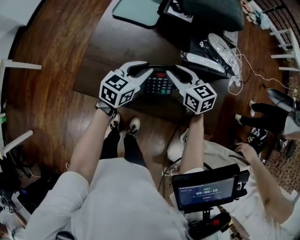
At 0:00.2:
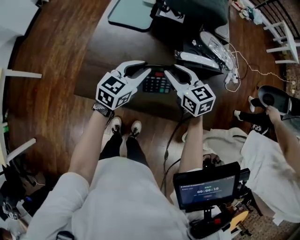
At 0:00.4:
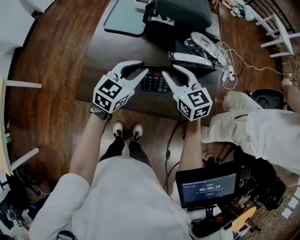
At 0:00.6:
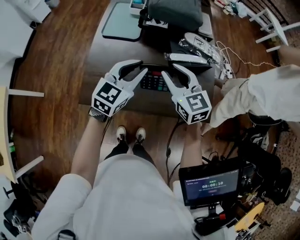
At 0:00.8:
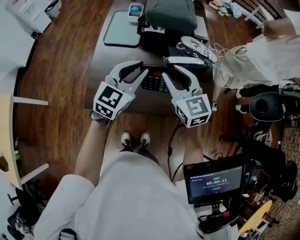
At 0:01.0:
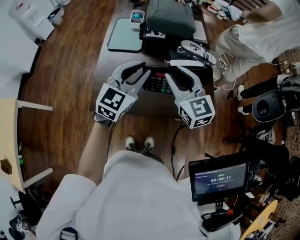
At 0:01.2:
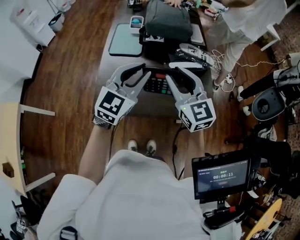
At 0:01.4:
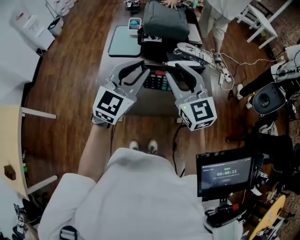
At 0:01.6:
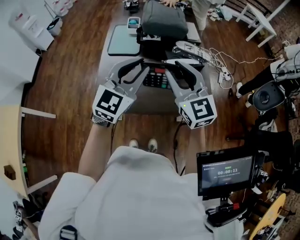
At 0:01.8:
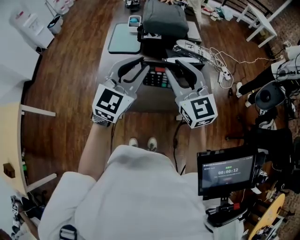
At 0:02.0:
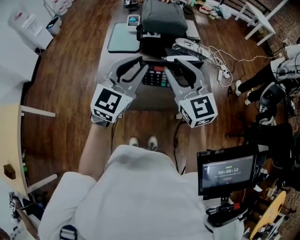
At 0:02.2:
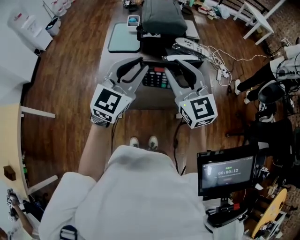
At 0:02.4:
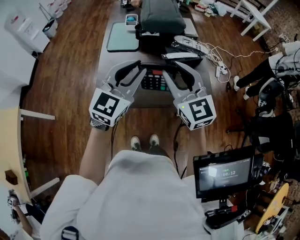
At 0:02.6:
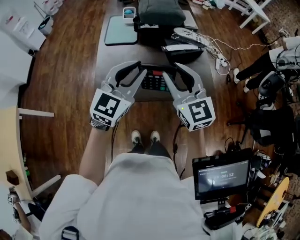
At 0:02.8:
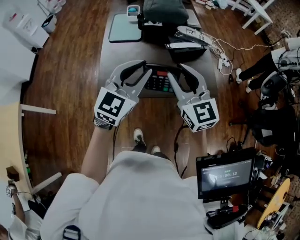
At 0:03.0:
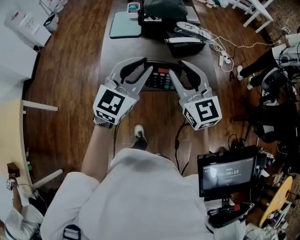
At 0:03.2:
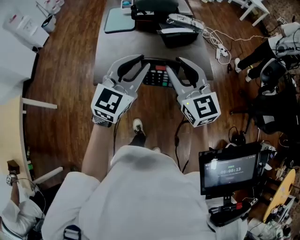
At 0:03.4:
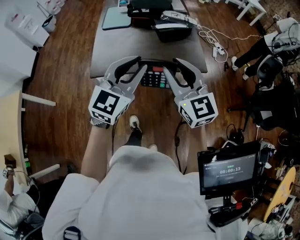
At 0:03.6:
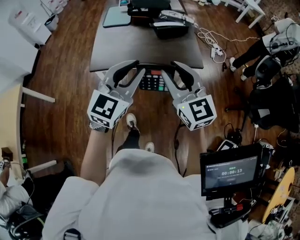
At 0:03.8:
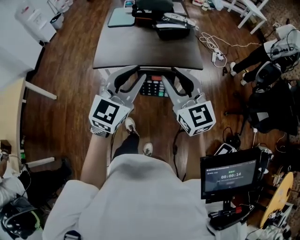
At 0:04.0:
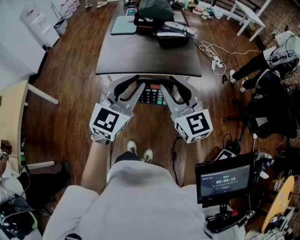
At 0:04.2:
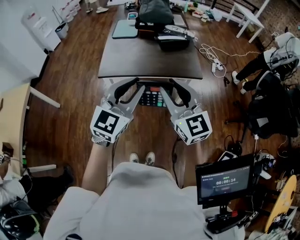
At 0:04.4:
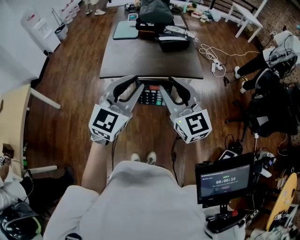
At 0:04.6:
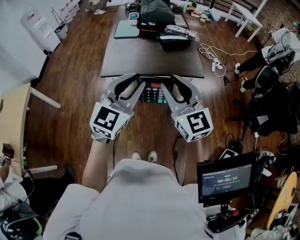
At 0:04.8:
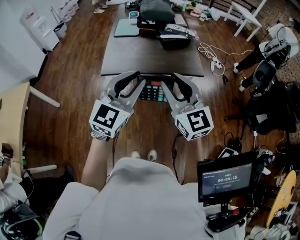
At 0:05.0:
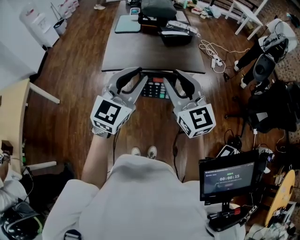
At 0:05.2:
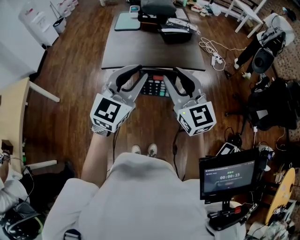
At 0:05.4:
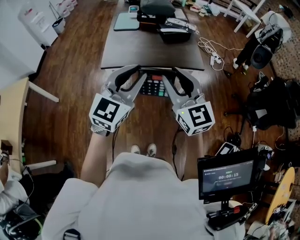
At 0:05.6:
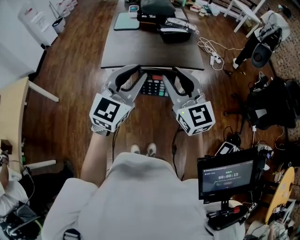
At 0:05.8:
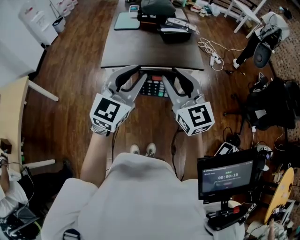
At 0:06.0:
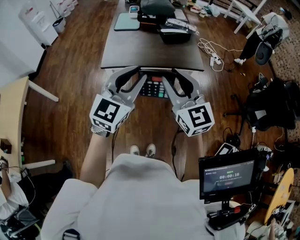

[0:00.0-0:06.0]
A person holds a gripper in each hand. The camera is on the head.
0:00.0 to 0:01.6: The left gripper is displaced upward by roughly 30 cm, and rotates around the line of its fingers by roughly 40 degrees, clockwise from behind. The right gripper shifts roughly 30 cm upward and backward, and rotates about 40 degrees.
0:01.6 to 0:03.0: Both grippers move backward, approximately 10 cm.
0:03.0 to 0:04.4: The grippers both shift backward by about 25 cm.
0:04.4 to 0:06.0: The grippers make only small movements.

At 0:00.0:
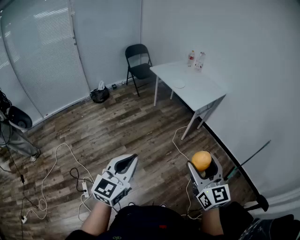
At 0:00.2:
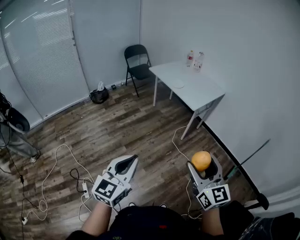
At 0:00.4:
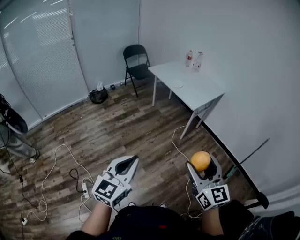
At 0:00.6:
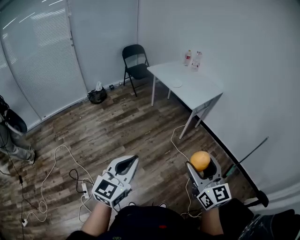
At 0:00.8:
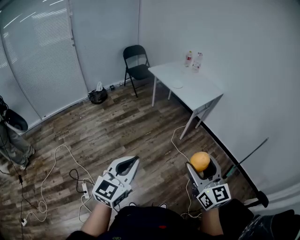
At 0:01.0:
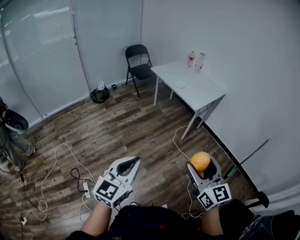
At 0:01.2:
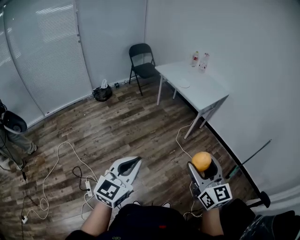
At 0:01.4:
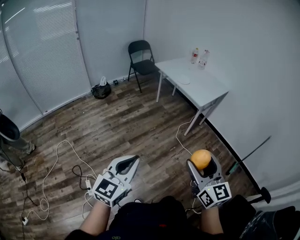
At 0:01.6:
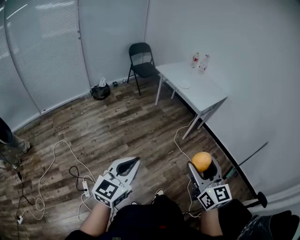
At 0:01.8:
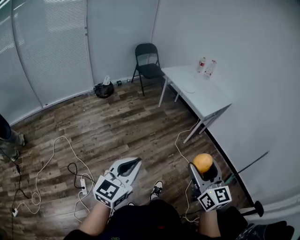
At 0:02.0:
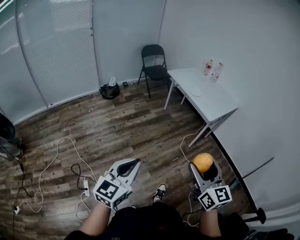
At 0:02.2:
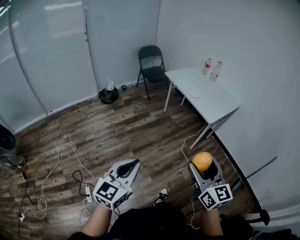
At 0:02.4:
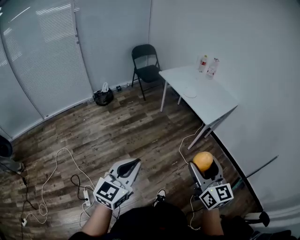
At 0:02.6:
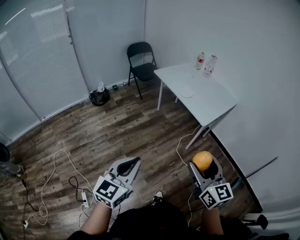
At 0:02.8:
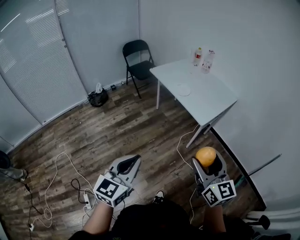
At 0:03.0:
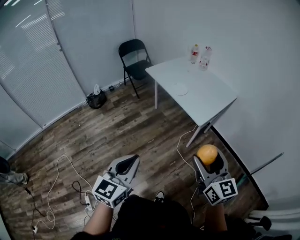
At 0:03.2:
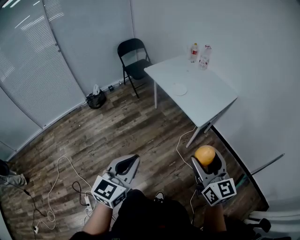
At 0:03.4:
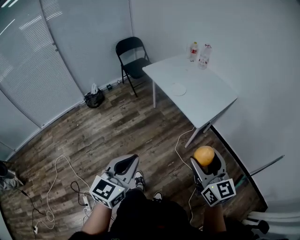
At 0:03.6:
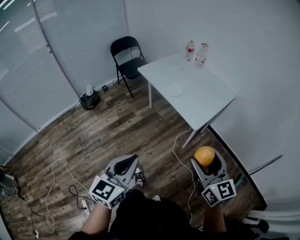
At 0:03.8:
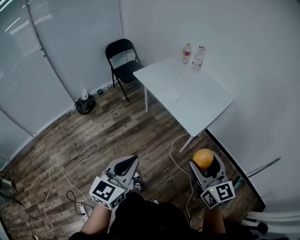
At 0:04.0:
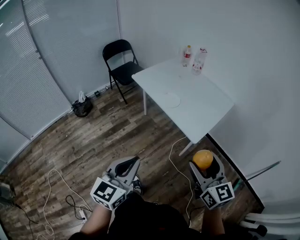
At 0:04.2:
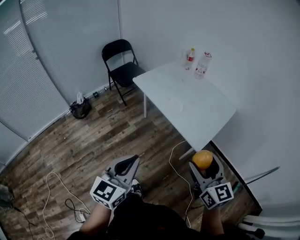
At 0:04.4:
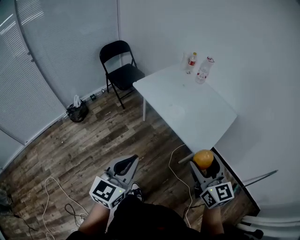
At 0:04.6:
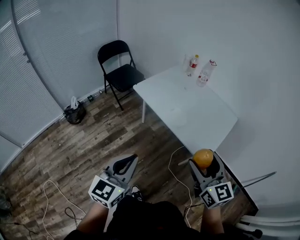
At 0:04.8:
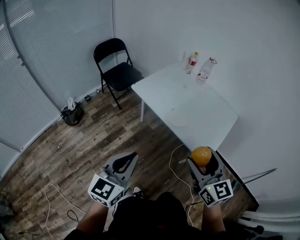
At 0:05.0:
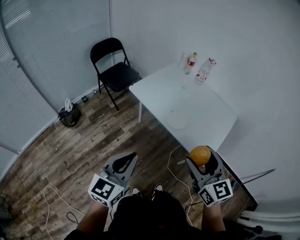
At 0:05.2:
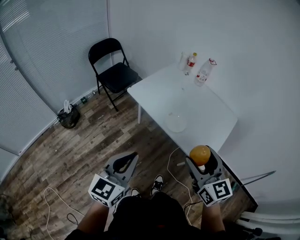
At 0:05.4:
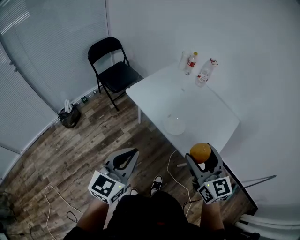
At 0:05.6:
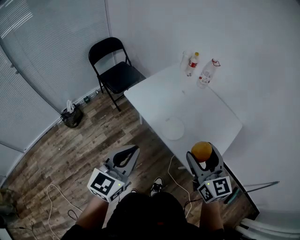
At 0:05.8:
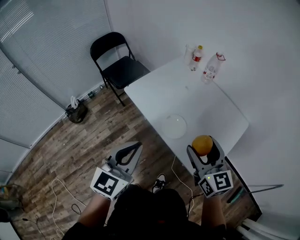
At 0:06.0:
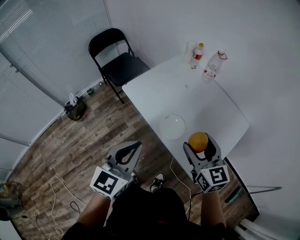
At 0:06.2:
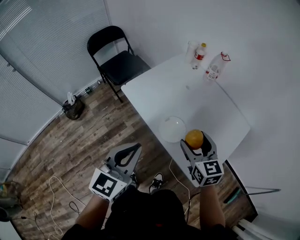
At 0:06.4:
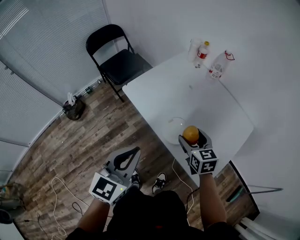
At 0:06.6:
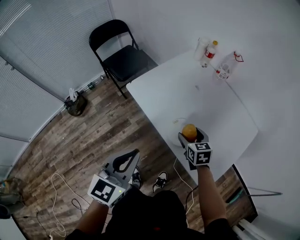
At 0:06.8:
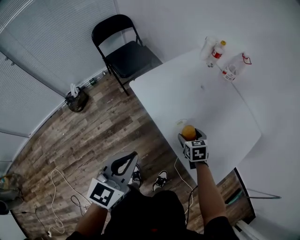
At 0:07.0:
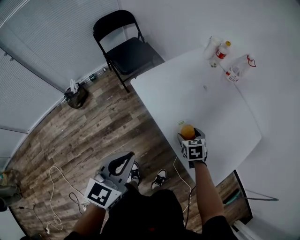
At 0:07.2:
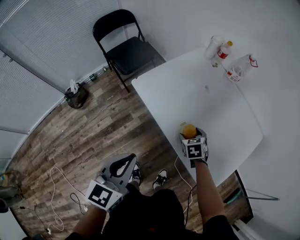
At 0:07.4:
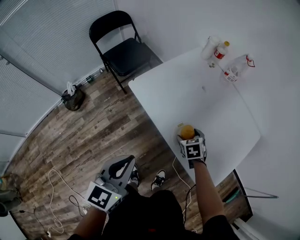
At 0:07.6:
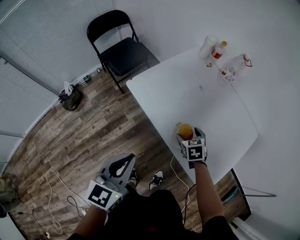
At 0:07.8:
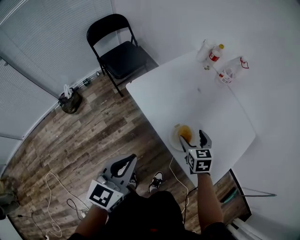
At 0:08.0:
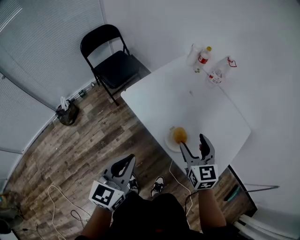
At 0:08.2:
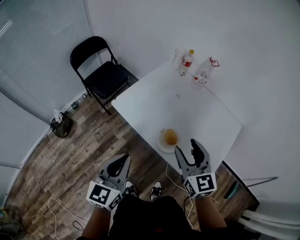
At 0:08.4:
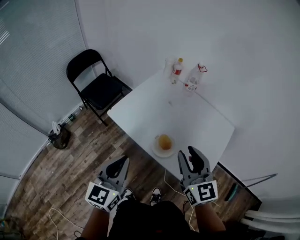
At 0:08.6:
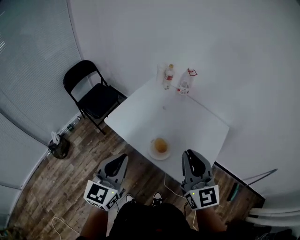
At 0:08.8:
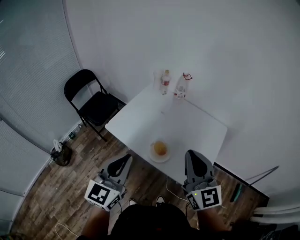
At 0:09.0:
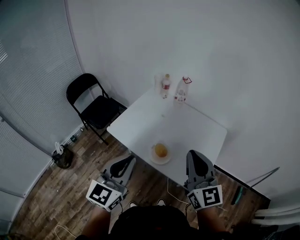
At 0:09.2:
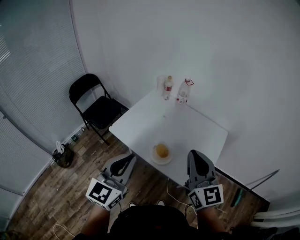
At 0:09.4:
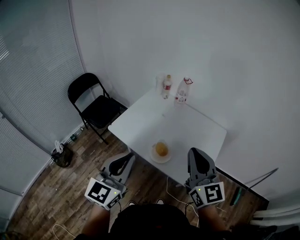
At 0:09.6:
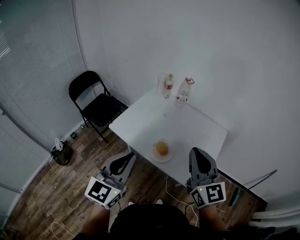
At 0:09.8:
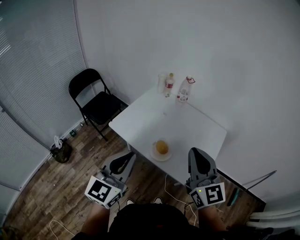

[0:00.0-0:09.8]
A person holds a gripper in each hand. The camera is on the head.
0:00.0 to 0:01.4: Both grippers move to the left, some 10 cm.
0:01.4 to 0:02.8: Both grippers travel together forward, some 30 cm.
0:02.8 to 0:04.2: Both grippers travel together forward, approximately 25 cm.
0:04.2 to 0:05.6: The two grippers go some 30 cm forward.
0:05.6 to 0:07.0: The right gripper travels downward and forward by some 40 cm, and tilts its fingers about 50 degrees downward, while the left gripper is displaced forward and downward by about 15 cm.
0:07.0 to 0:08.4: The right gripper goes some 35 cm upward, tilts its fingers about 50 degrees upward, and closes its fingers; the left gripper goes roughly 5 cm upward.
0:08.4 to 0:09.8: The right gripper is displaced upward and backward by roughly 15 cm, and closes up. Meanwhile the left gripper goes some 10 cm upward.

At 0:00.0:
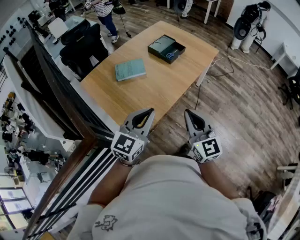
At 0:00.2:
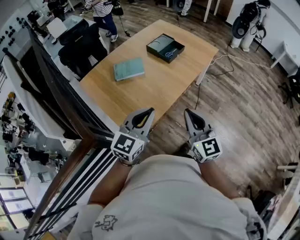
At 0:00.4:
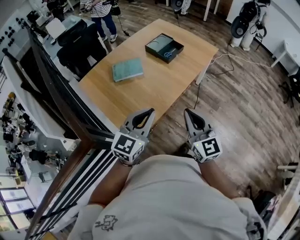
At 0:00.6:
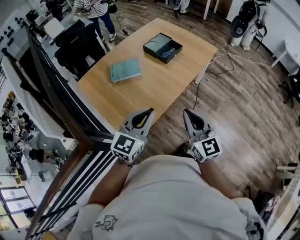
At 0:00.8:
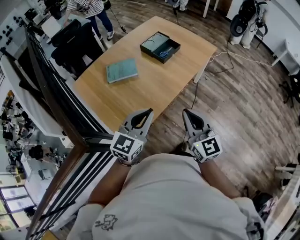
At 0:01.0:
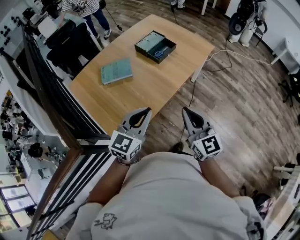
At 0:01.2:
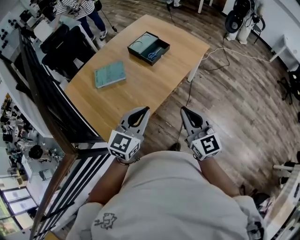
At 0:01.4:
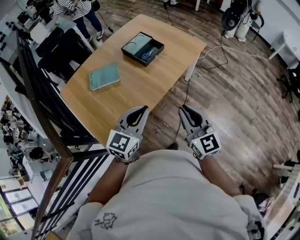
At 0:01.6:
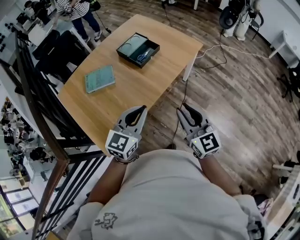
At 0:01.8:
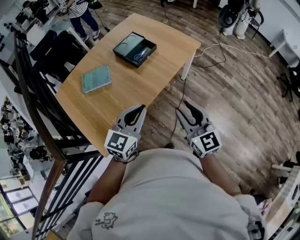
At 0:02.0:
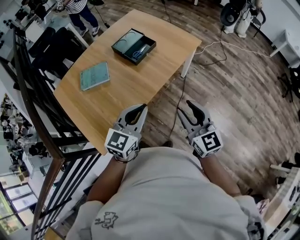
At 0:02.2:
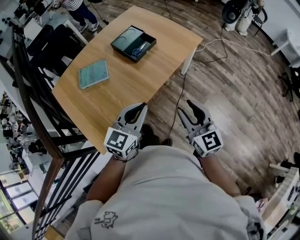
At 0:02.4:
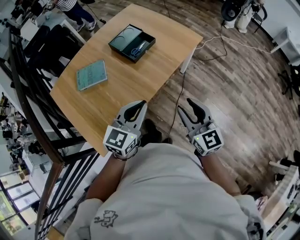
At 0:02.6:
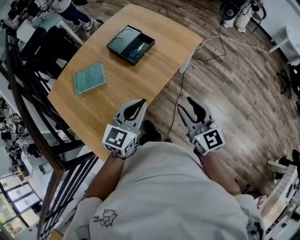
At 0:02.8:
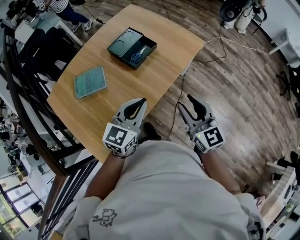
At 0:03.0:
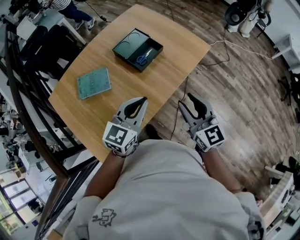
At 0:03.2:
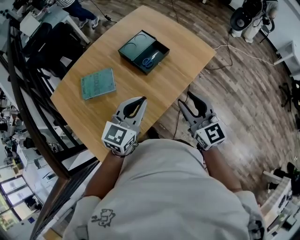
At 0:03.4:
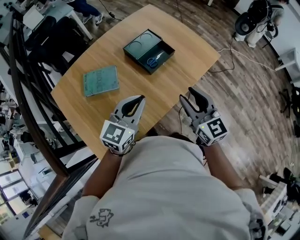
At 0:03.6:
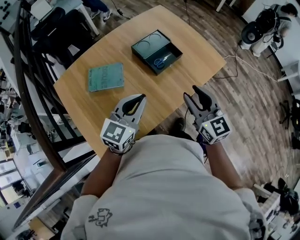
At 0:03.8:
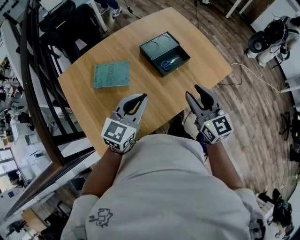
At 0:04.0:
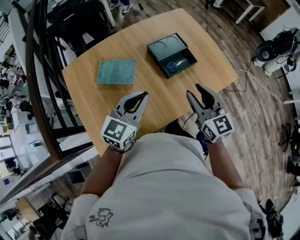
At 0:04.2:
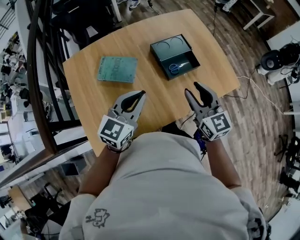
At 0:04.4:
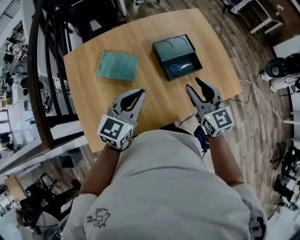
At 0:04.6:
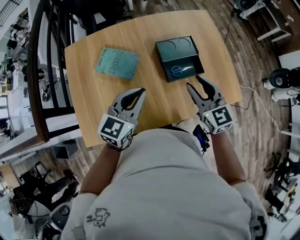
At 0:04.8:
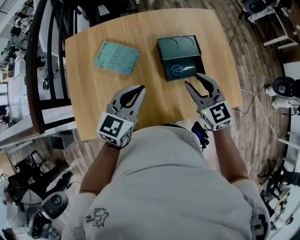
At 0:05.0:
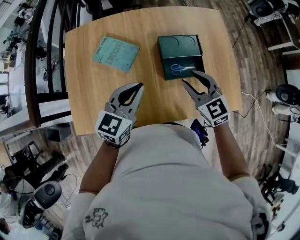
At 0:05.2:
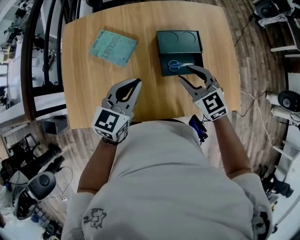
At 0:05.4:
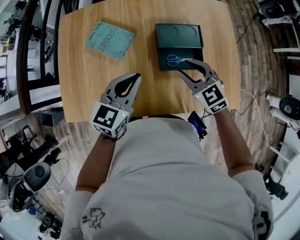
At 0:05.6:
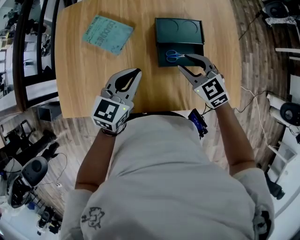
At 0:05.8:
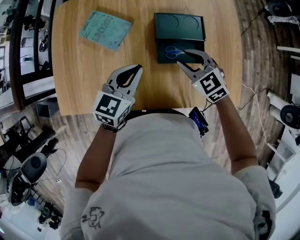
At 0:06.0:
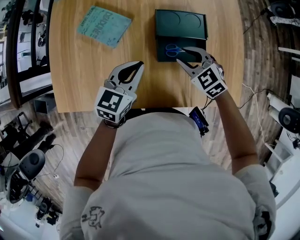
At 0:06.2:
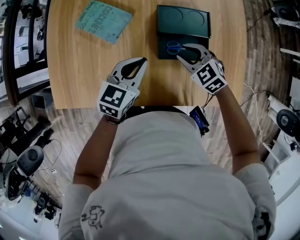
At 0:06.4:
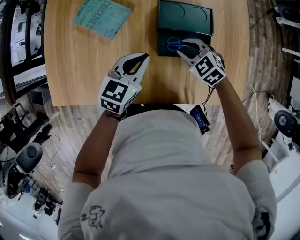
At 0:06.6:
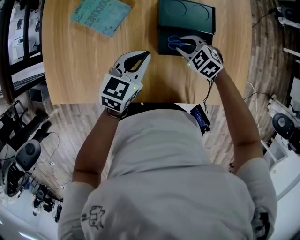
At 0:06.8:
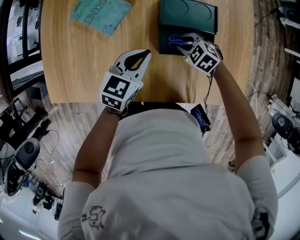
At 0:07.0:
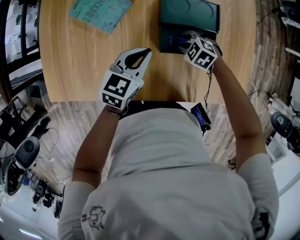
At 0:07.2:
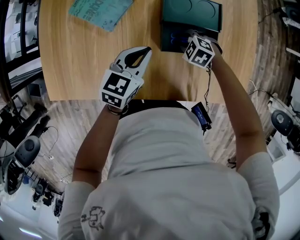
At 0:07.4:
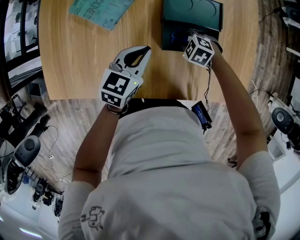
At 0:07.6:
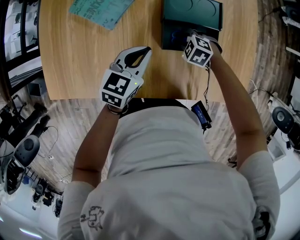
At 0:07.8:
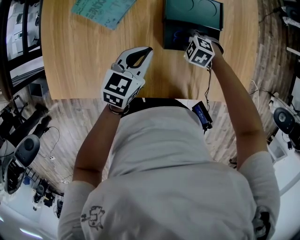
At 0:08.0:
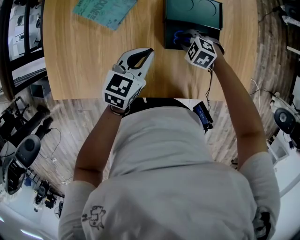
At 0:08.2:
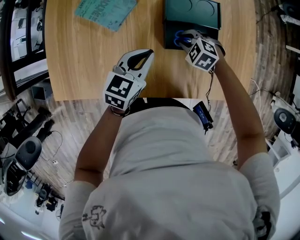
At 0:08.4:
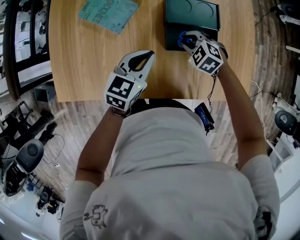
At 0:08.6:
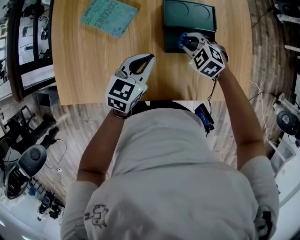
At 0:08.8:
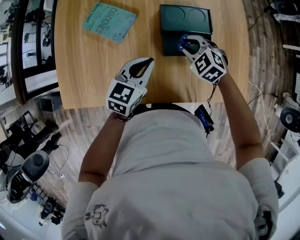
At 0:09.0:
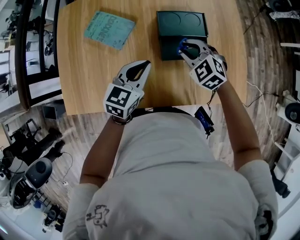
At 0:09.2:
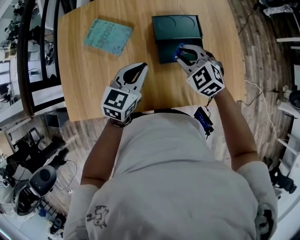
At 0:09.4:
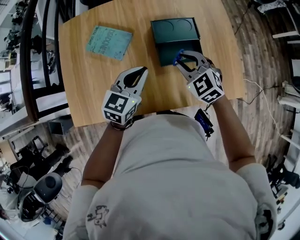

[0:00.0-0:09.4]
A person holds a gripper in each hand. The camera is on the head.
0:00.0 to 0:01.6: Both grippers move to the right and forward, about 25 cm. The right gripper opens.
0:01.6 to 0:03.2: Both grippers move forward, approximately 20 cm.
0:03.2 to 0:04.8: The right gripper shifts by approximately 25 cm, and turns by about 40 degrees. Meanwhile the left gripper changes place by approximately 15 cm, and changes its angle by about 30 degrees.
0:04.8 to 0:06.2: The right gripper moves downward, about 20 cm, and rotates about 40 degrees, while the left gripper moves downward and to the right, roughly 15 cm.
0:06.2 to 0:07.8: The right gripper travels downward by approximately 15 cm, and turns by about 30 degrees.
0:07.8 to 0:09.4: The left gripper heads upward, covering some 10 cm; the right gripper heads upward, covering some 25 cm, and tilts its fingers approximately 30 degrees upward.
